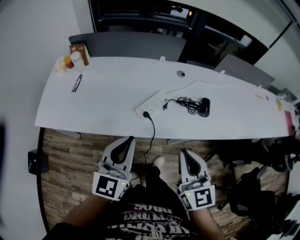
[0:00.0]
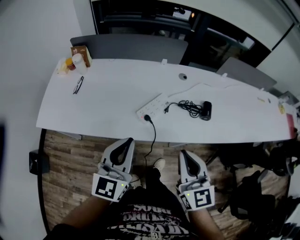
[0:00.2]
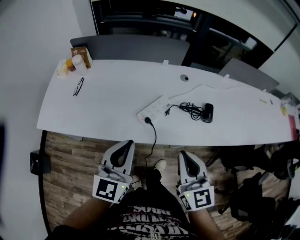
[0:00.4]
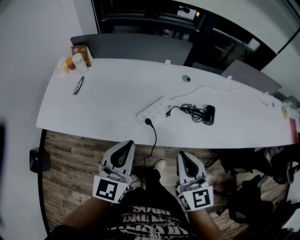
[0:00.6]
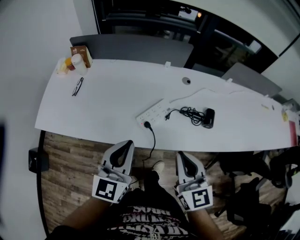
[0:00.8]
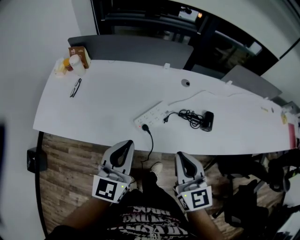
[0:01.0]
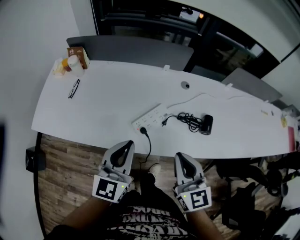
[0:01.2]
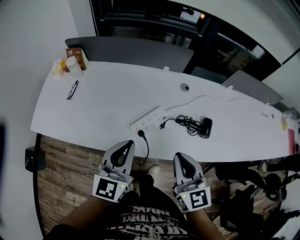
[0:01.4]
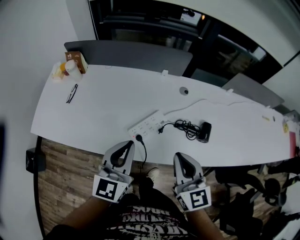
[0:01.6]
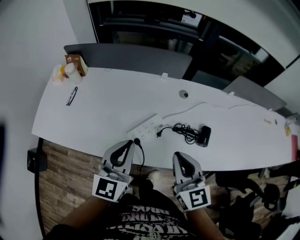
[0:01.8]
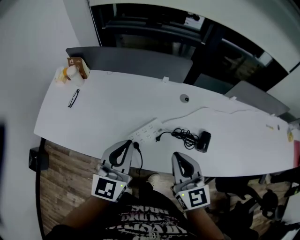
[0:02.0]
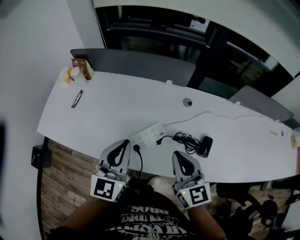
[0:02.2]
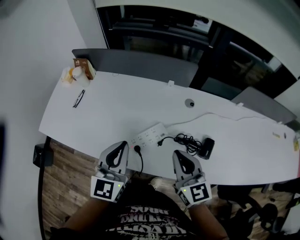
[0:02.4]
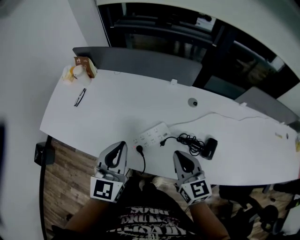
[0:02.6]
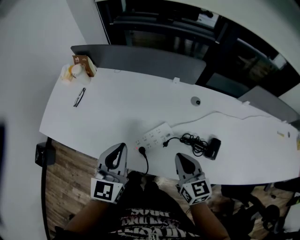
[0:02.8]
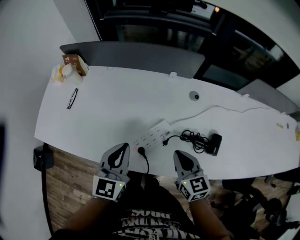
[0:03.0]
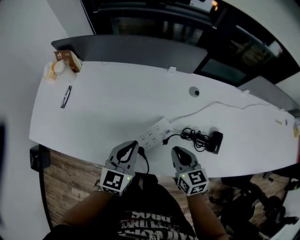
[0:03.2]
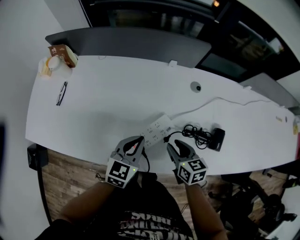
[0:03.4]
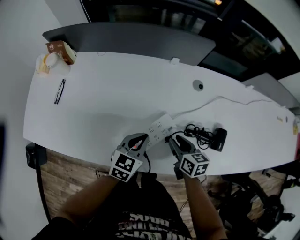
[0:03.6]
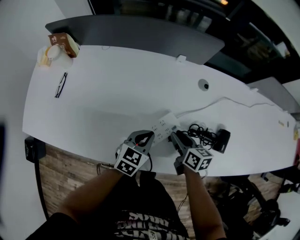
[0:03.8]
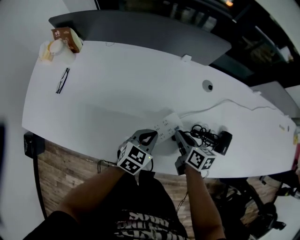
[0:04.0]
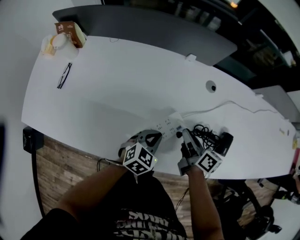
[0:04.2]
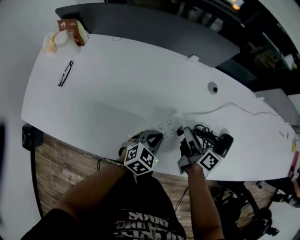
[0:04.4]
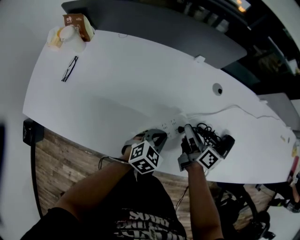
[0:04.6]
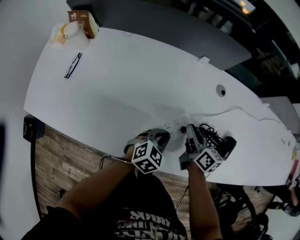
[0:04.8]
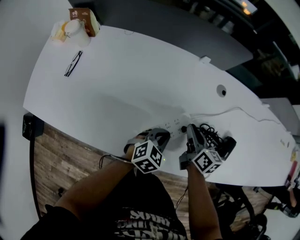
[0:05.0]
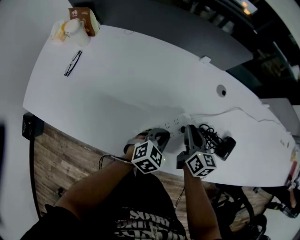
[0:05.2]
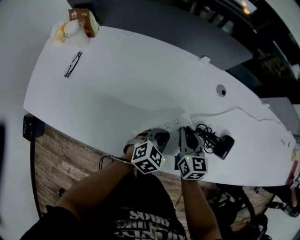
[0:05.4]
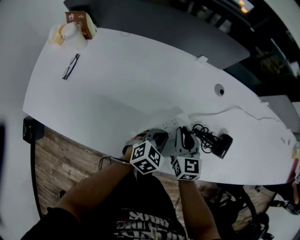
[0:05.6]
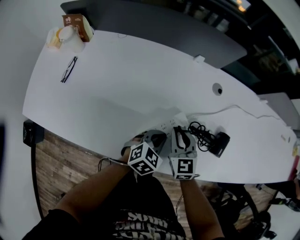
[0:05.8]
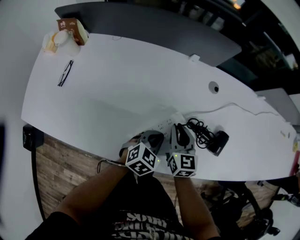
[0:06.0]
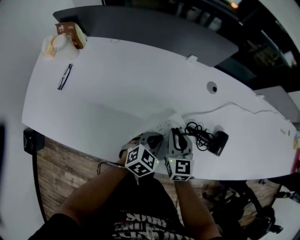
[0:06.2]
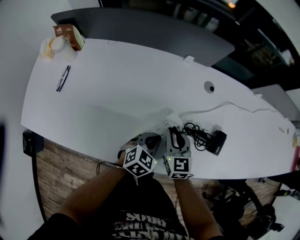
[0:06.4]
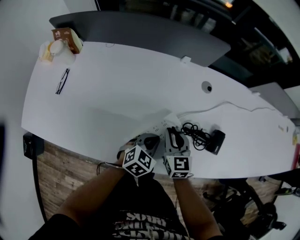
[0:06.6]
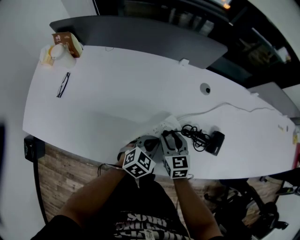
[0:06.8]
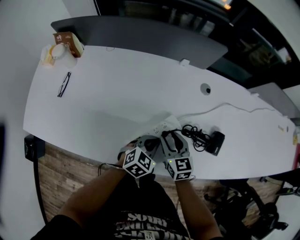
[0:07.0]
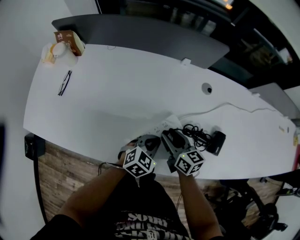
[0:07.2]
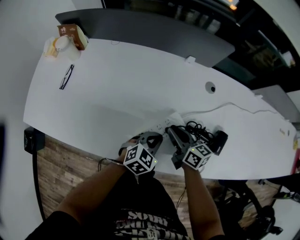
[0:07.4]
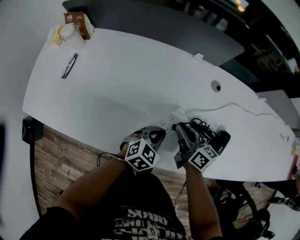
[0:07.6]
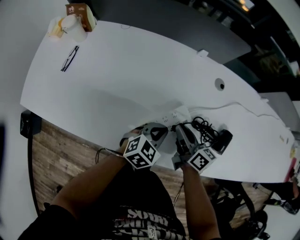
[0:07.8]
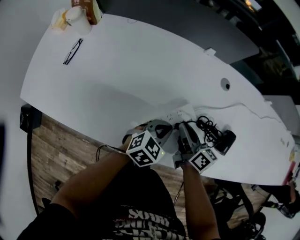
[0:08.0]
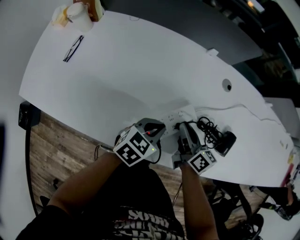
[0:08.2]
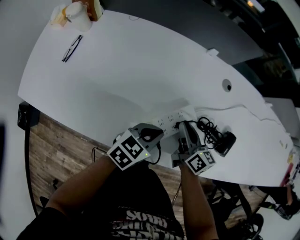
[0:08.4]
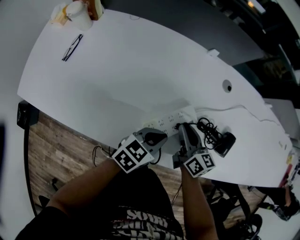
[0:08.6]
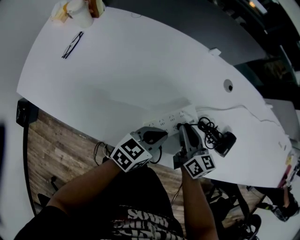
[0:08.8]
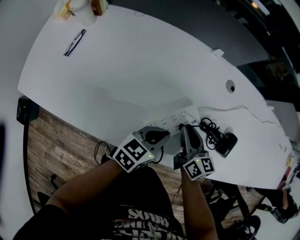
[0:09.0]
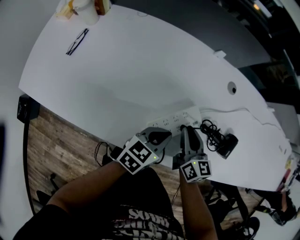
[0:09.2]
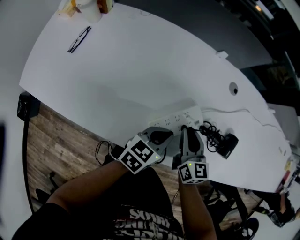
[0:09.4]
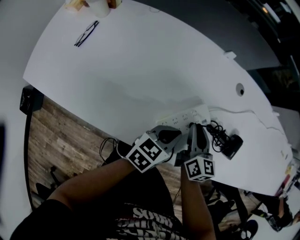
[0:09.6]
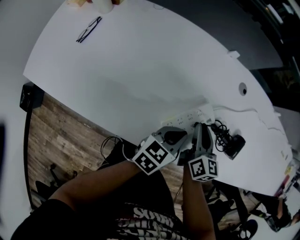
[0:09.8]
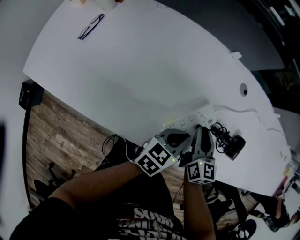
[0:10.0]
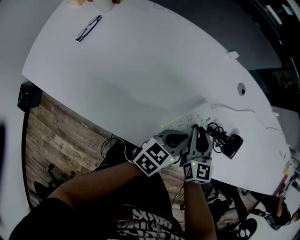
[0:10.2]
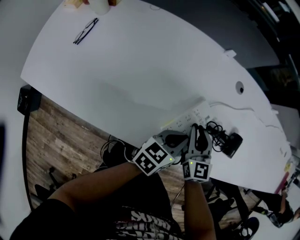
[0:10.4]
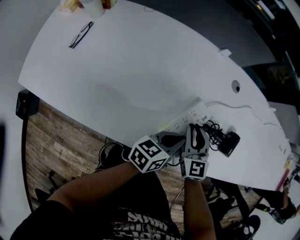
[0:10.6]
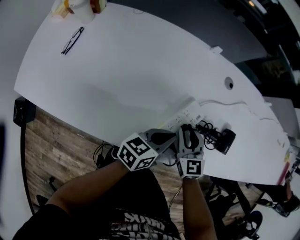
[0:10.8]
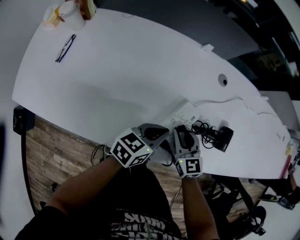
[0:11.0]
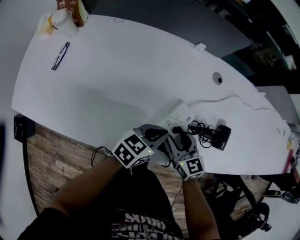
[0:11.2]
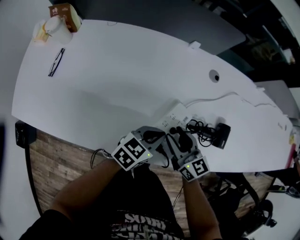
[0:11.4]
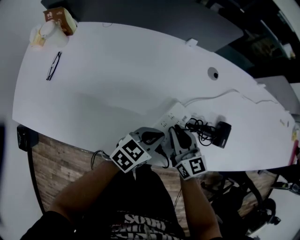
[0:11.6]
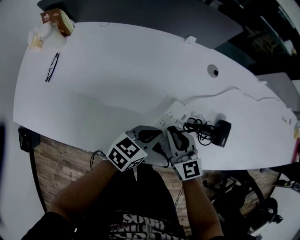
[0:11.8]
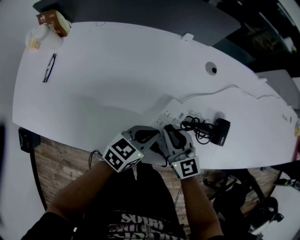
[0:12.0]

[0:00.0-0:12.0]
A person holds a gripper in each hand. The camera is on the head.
0:00.0 to 0:01.6: Both grippers move forward, roughly 15 cm.
0:01.6 to 0:03.0: The left gripper shifts approximately 10 cm forward and downward. The right gripper moves downward and forward, some 15 cm.
0:03.0 to 0:04.4: The right gripper shifts about 15 cm downward and forward, twists some 50 degrees clockwise, seen from behind, and opens, then closes again, while the left gripper travels downward and to the right by some 25 cm, and rotates some 40 degrees.
0:04.4 to 0:06.0: The right gripper rolls counterclockwise, seen from behind, by approximately 50 degrees.
0:06.0 to 0:07.6: The right gripper swivels roughly 40 degrees, and opens, then closes once more.
0:07.6 to 0:09.0: The left gripper changes its angle by approximately 30 degrees.
0:09.0 to 0:10.4: The right gripper turns by about 30 degrees.
0:10.4 to 0:12.0: The right gripper opens, then closes once more.

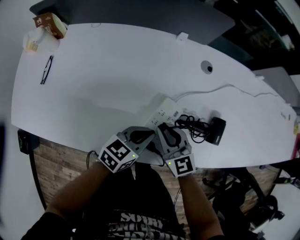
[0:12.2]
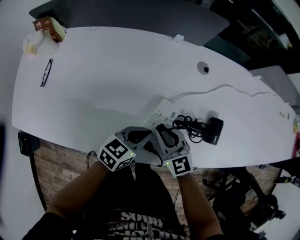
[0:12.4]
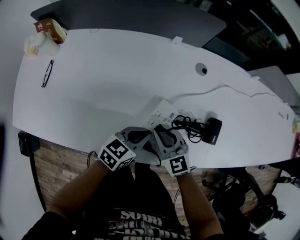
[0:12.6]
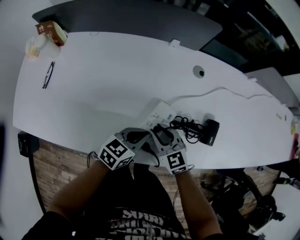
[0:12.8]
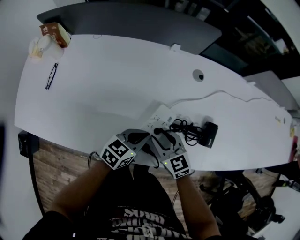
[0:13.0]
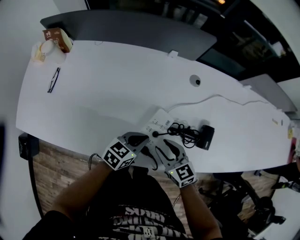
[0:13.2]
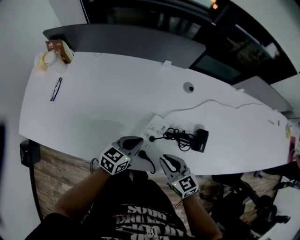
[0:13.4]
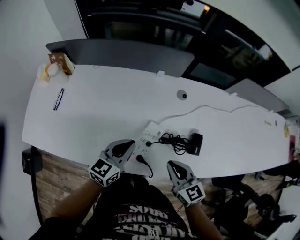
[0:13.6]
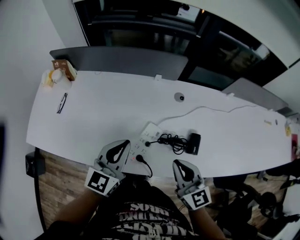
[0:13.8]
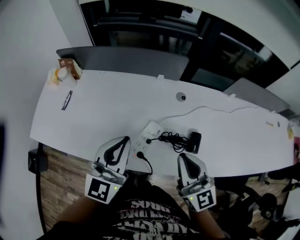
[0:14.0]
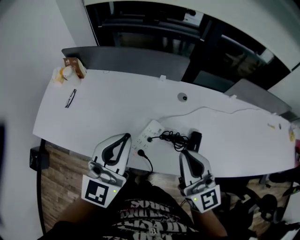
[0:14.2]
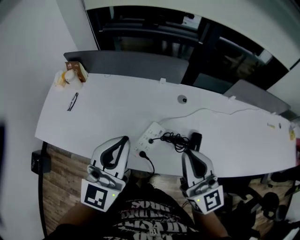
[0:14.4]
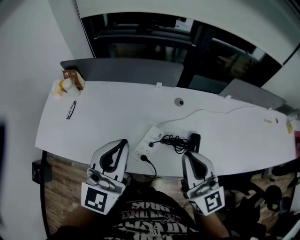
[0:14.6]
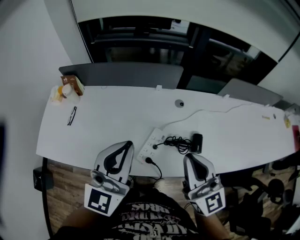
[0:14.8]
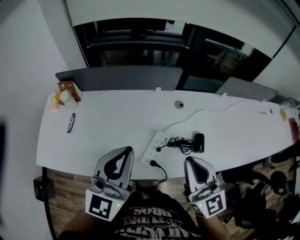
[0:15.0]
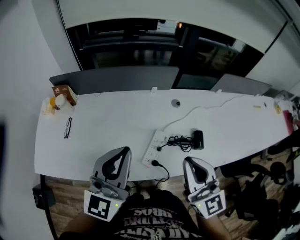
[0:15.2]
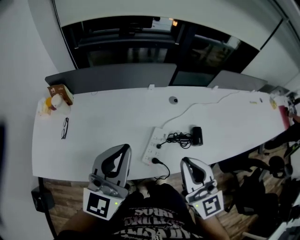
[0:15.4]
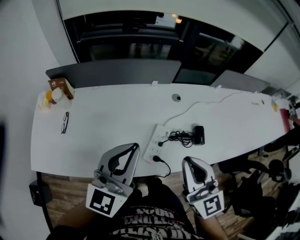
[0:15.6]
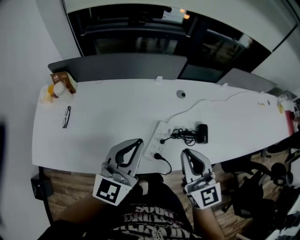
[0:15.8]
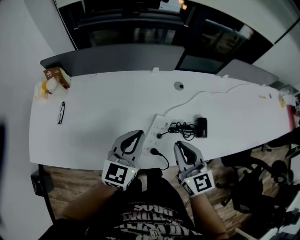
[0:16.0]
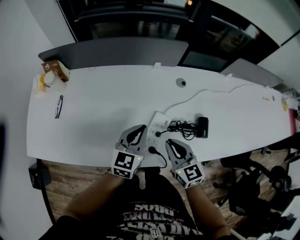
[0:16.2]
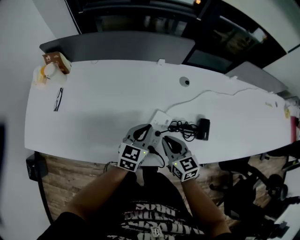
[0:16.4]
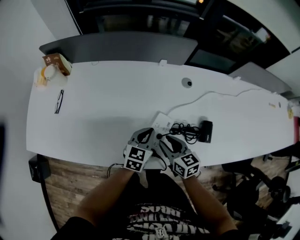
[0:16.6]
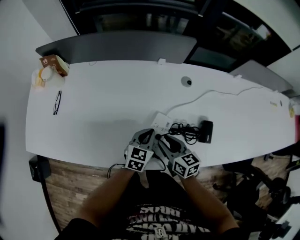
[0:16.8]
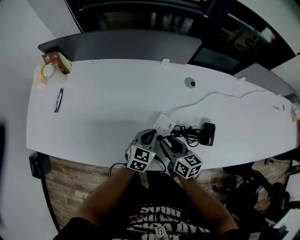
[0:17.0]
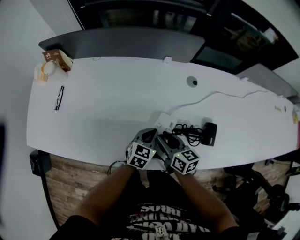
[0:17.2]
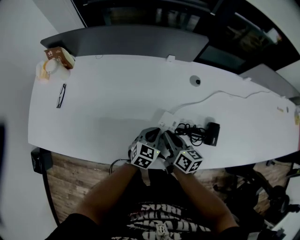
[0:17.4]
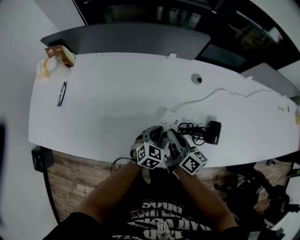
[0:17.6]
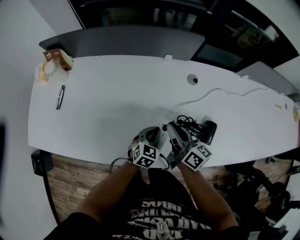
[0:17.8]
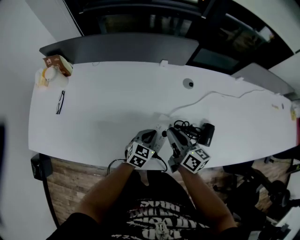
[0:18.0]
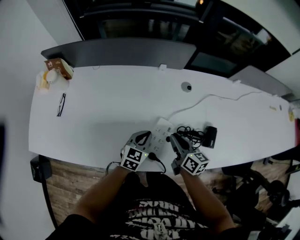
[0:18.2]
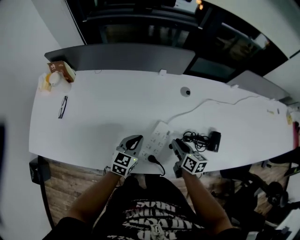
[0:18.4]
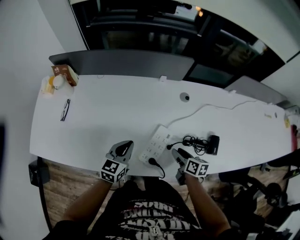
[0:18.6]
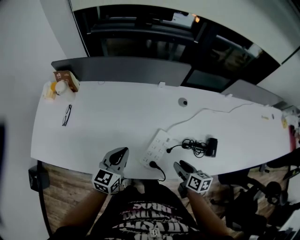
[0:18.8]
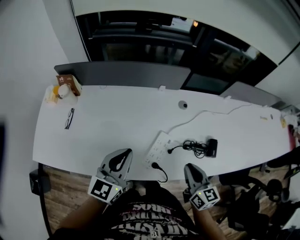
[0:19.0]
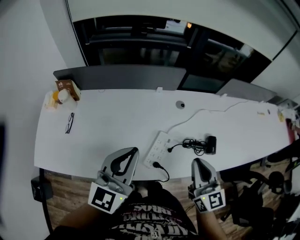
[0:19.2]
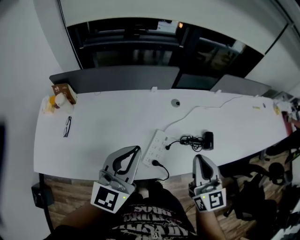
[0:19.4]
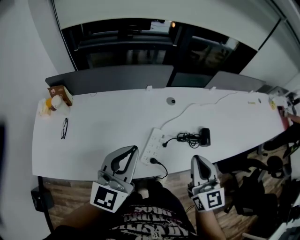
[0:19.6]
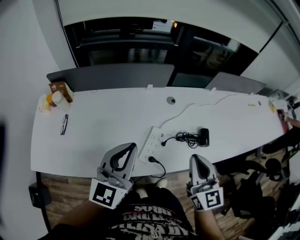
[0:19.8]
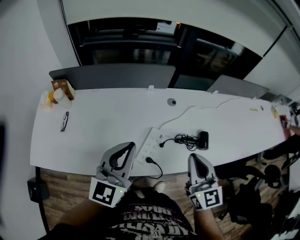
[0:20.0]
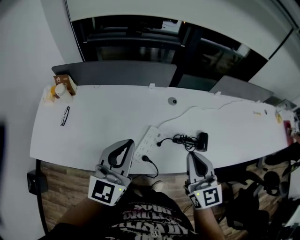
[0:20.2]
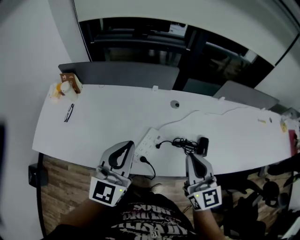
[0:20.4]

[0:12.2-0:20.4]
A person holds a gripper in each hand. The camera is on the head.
0:12.2 to 0:13.8: The right gripper goes roughly 20 cm upward and to the right. Meanwhile the left gripper heads upward, covering approximately 20 cm, and rotates some 40 degrees.
0:13.8 to 0:15.4: Both grippers travel together upward and to the left, approximately 15 cm. The left gripper turns by some 20 degrees, while the right gripper changes its angle by some 20 degrees.
0:15.4 to 0:17.2: The grippers both shift downward by roughly 35 cm. The right gripper rotates about 50 degrees, and opens its fingers; the left gripper points its fingers some 40 degrees further downward.
0:17.2 to 0:18.8: The right gripper shifts about 15 cm to the right and backward, and closes and opens again; the left gripper goes some 20 cm upward and to the left.
0:18.8 to 0:20.4: The left gripper shifts roughly 25 cm upward and to the right, and rotates approximately 20 degrees, while the right gripper is displaced upward by some 25 cm, points its fingers some 30 degrees further upward, and closes.

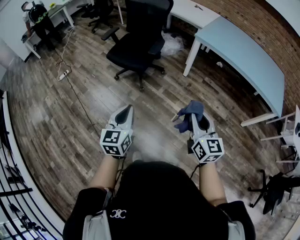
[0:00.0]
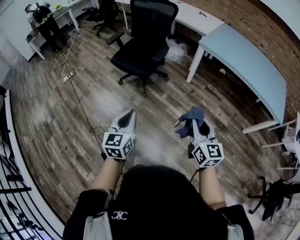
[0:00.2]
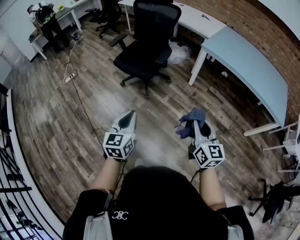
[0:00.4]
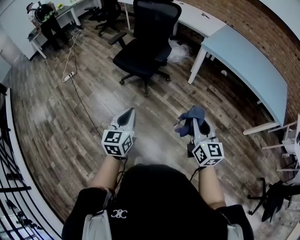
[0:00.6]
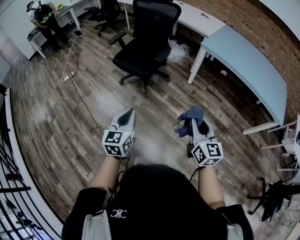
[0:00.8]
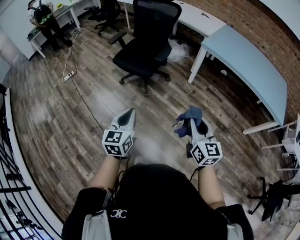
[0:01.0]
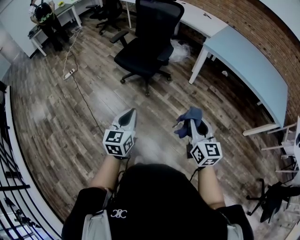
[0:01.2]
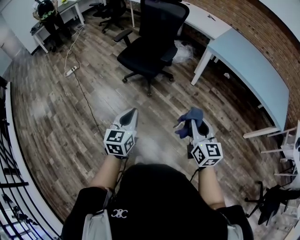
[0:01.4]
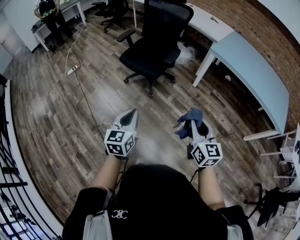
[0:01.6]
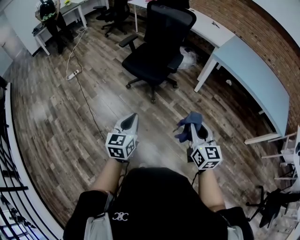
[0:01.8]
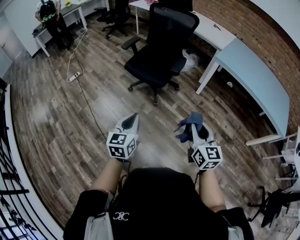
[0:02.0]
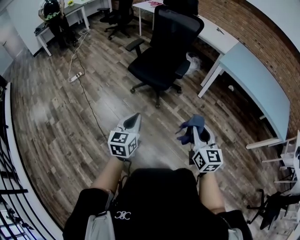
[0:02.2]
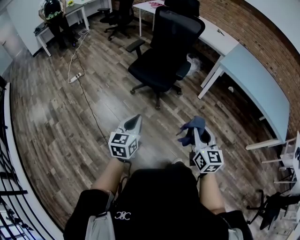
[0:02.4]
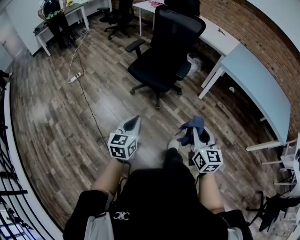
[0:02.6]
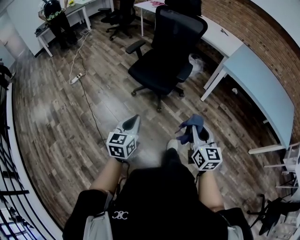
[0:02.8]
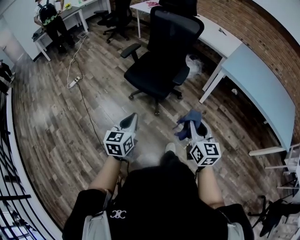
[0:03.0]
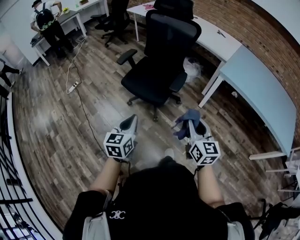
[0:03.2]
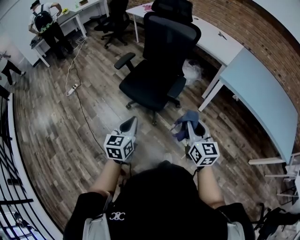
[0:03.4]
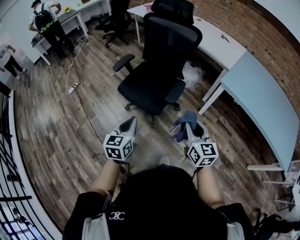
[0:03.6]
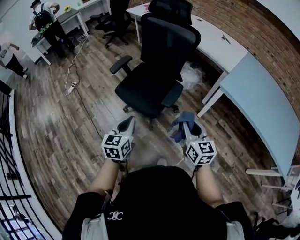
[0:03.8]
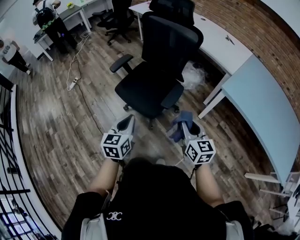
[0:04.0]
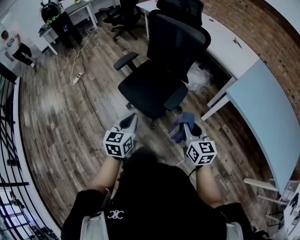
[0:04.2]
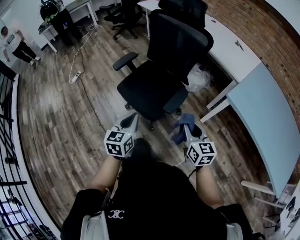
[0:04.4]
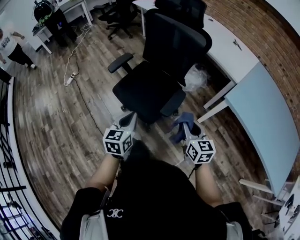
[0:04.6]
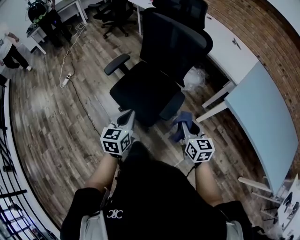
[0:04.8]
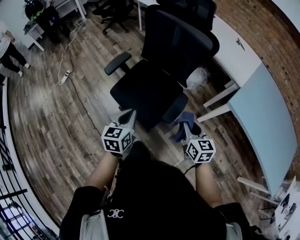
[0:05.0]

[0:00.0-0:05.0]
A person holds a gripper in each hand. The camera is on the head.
0:00.0 to 0:01.6: The grippers both shift to the left by some 5 cm.
0:01.6 to 0:03.4: Both grippers travel together forward, approximately 25 cm.
0:03.4 to 0:05.0: Both grippers move forward, roughly 25 cm.
